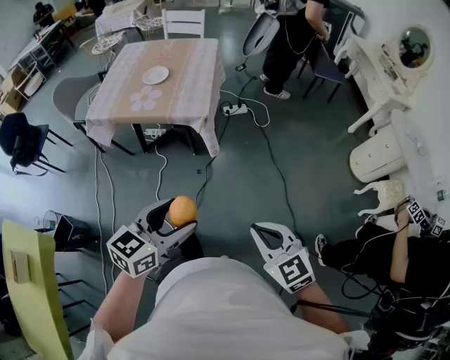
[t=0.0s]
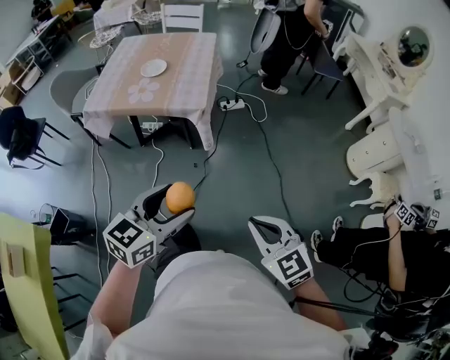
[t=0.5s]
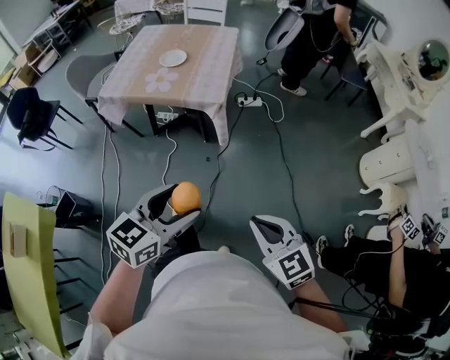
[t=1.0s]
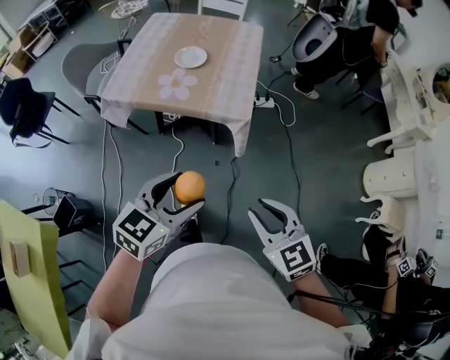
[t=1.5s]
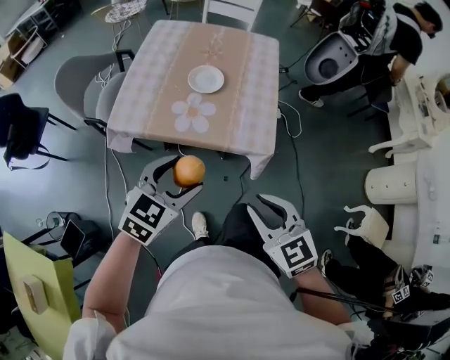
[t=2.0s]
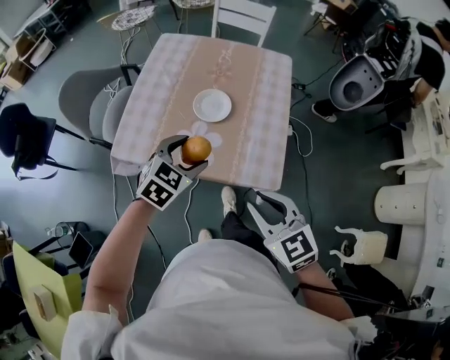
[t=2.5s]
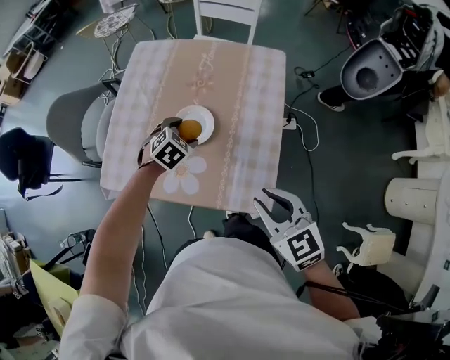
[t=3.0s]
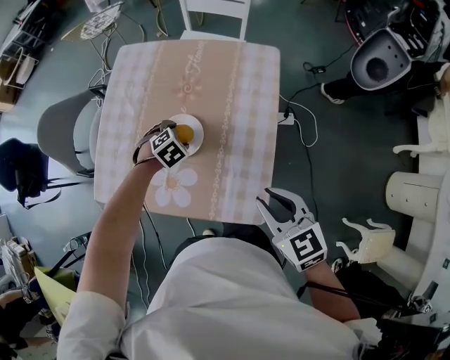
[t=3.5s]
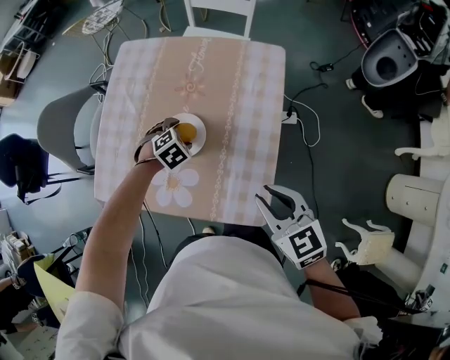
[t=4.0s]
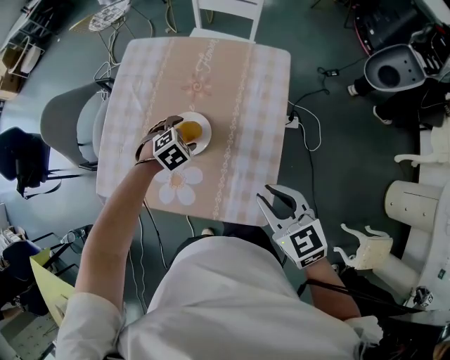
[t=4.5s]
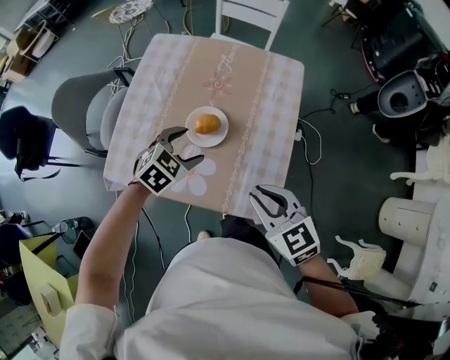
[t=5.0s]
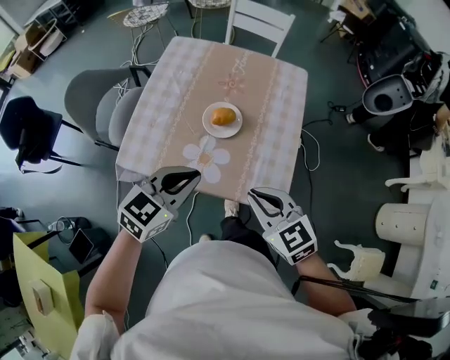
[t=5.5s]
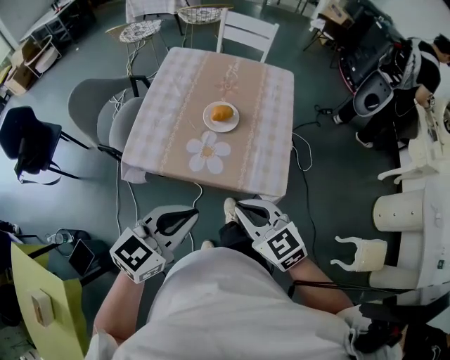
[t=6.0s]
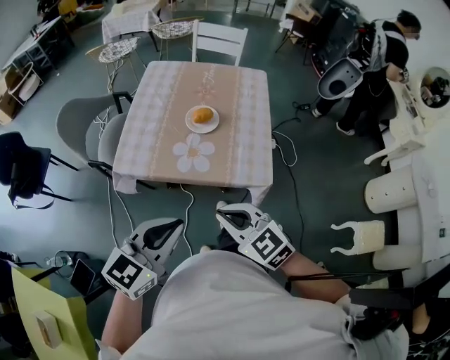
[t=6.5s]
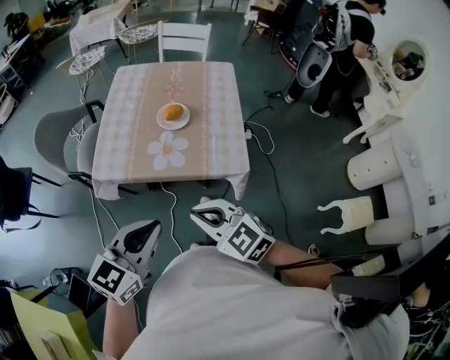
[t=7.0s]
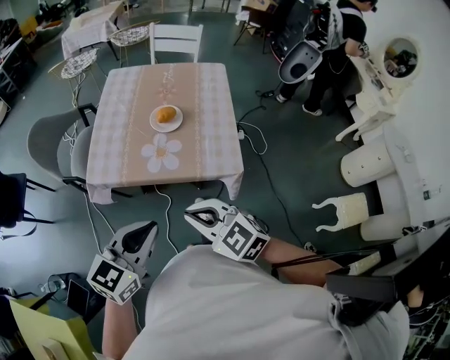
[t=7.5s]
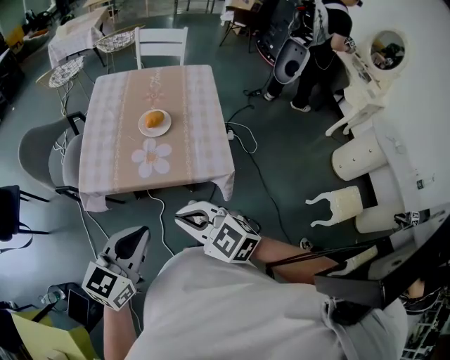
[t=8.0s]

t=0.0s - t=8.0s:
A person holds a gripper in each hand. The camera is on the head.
t=0.0s - t=2.0s: The pair of grippers is taken forward and to the left, some 40 cm. The right gripper opens. Meanwhile the left gripper changes its angle by approximately 20 degrees.
t=2.0s - t=4.0s: The left gripper goes about 50 cm forward and downward, and tips its fingers downward by roughly 40 degrees. The right gripper goes some 35 cm forward.
t=4.0s - t=6.0s: The right gripper travels backward and to the left by some 30 cm, and closes up; the left gripper shifts about 50 cm backward and upward, tilts its fingers some 60 degrees upward, and closes.
t=6.0s - t=8.0s: The right gripper heads backward and to the left, covering about 10 cm. Meanwhile the left gripper travels backward by approximately 5 cm.

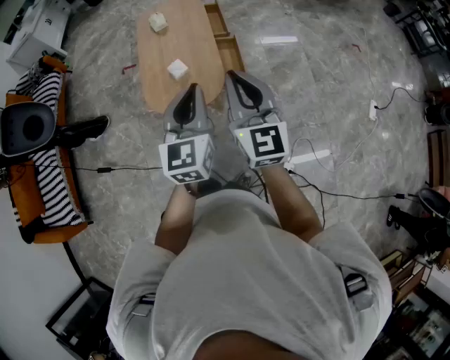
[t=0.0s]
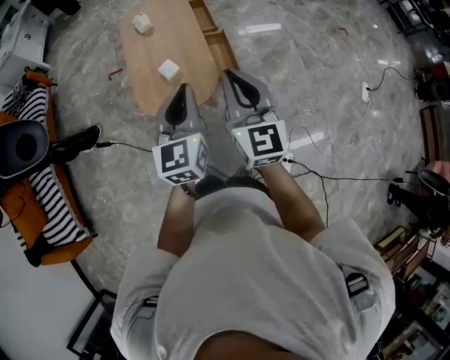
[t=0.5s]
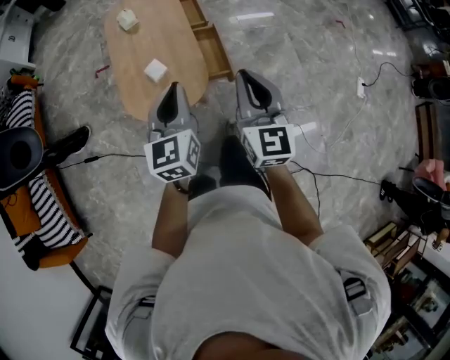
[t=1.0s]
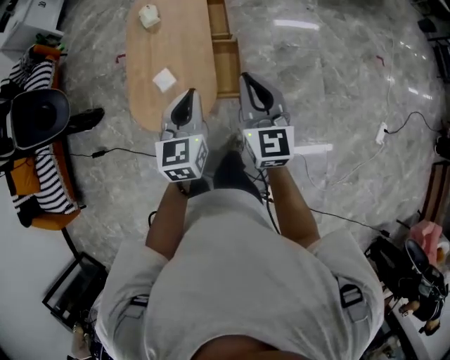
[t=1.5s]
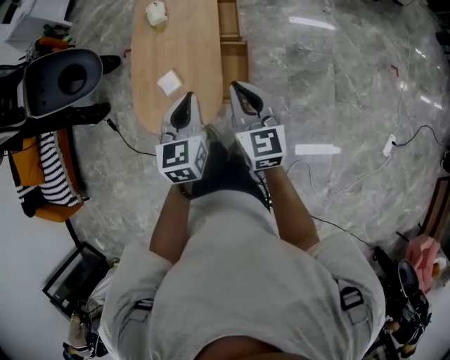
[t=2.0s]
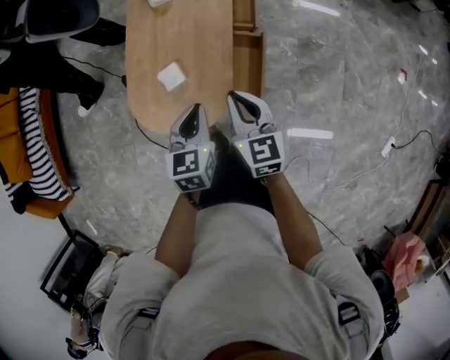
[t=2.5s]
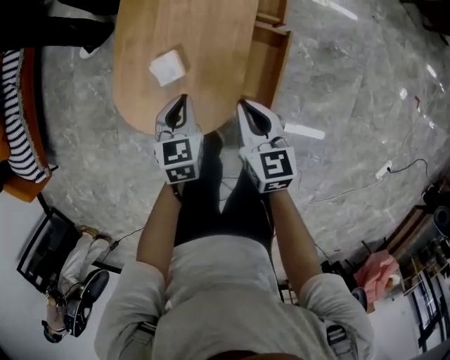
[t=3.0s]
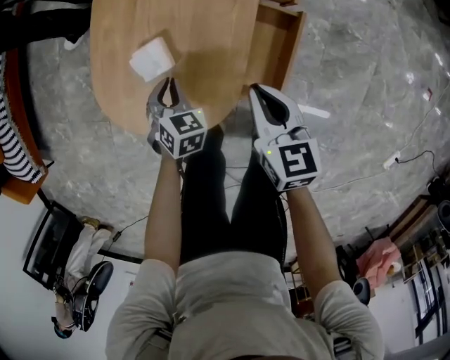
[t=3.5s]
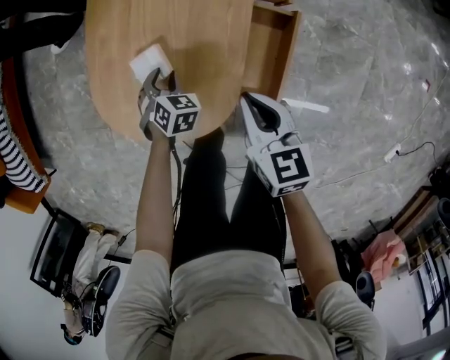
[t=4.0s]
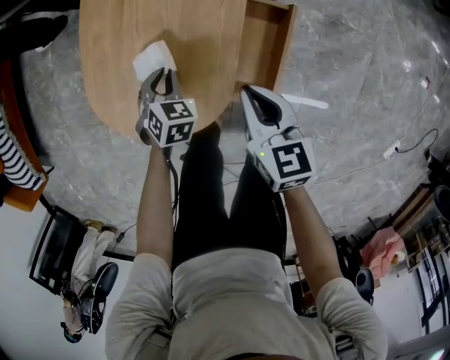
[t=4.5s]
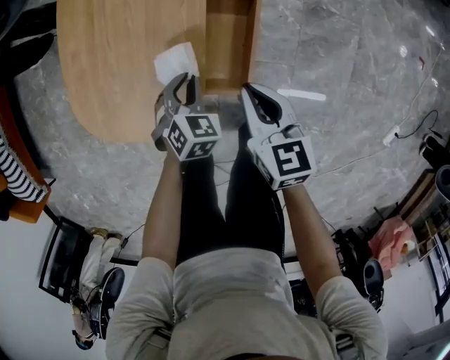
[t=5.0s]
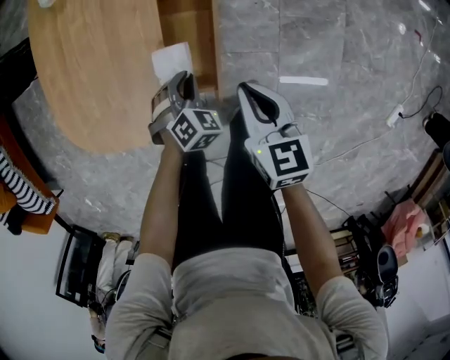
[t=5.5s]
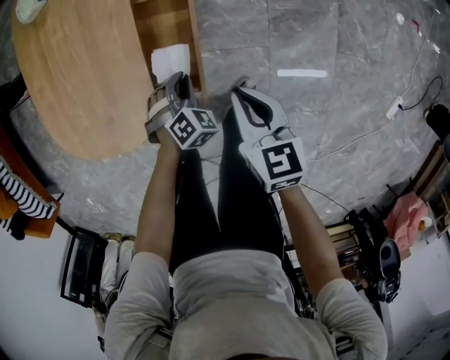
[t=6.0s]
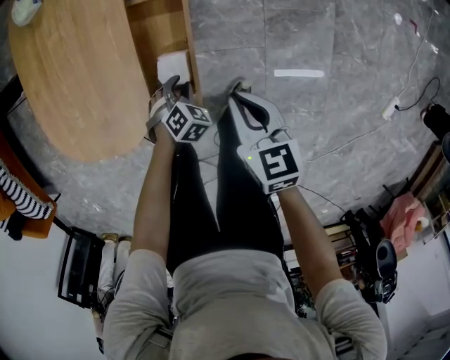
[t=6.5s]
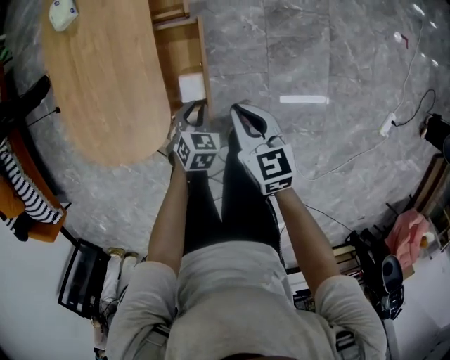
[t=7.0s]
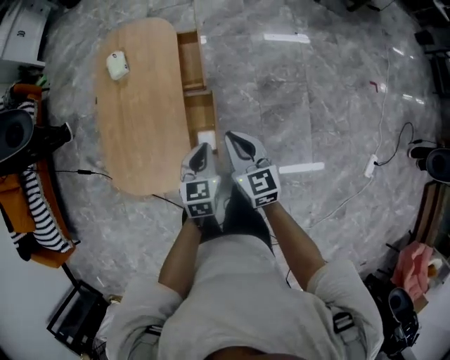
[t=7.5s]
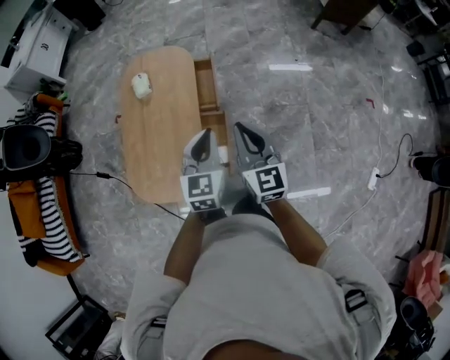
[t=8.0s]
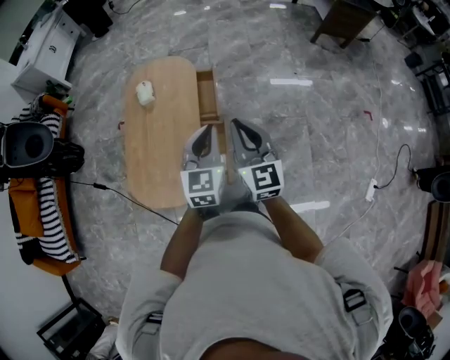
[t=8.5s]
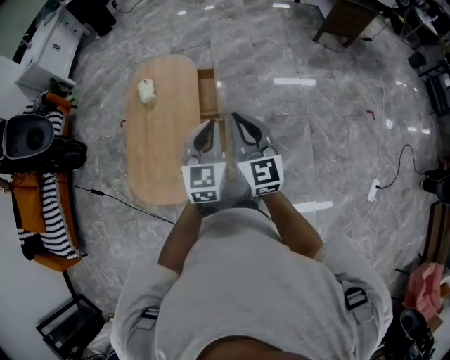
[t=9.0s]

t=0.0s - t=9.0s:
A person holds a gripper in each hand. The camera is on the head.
t=0.0s - t=2.0s: Both grippers travel together forward and downward, roughly 30 cm. The right gripper turns by about 20 degrees; the left gripper turns by about 20 degrees.
t=2.0s - t=4.5s: Both grippers move downward, approximately 40 cm. The right gripper changes its angle by approximately 30 degrees. The left gripper tips its fingers downward by roughly 40 degrees, and opens, then closes again.
t=4.5s - t=7.0s: The right gripper is displaced to the right by some 20 cm. Meanwhile the left gripper heads to the right and backward, covering some 30 cm.
t=7.0s - t=9.0s: The two grippers go roughly 40 cm upward. The left gripper points its fingers some 50 degrees further upward, while the right gripper points its fingers about 30 degrees further upward.

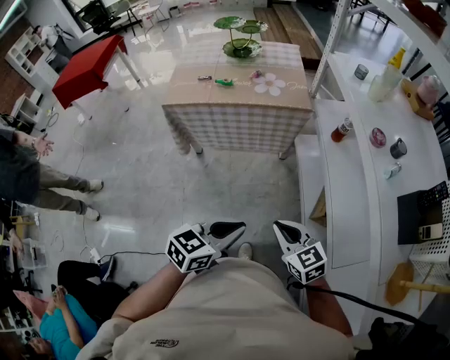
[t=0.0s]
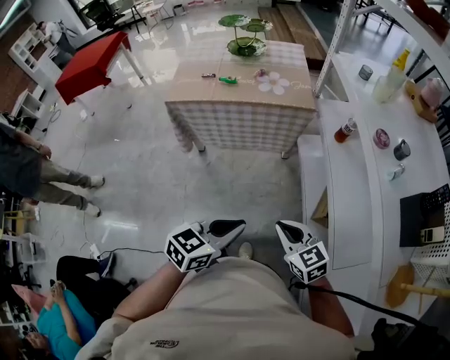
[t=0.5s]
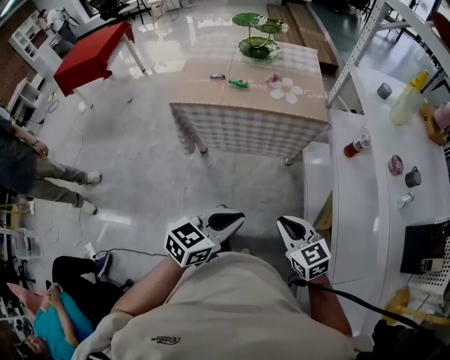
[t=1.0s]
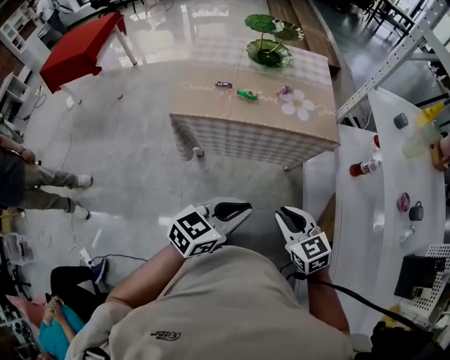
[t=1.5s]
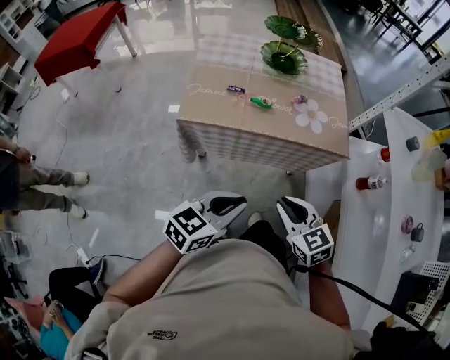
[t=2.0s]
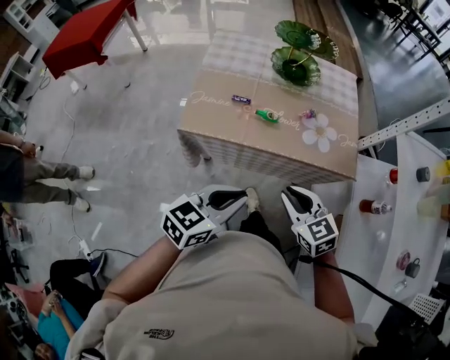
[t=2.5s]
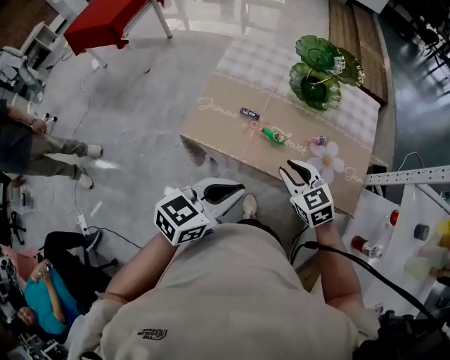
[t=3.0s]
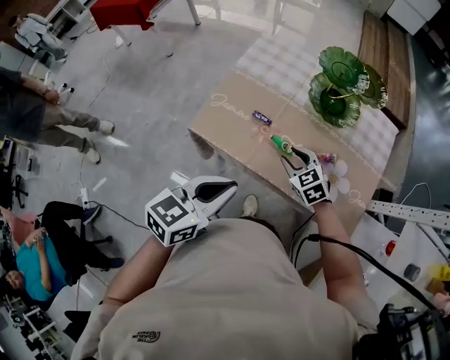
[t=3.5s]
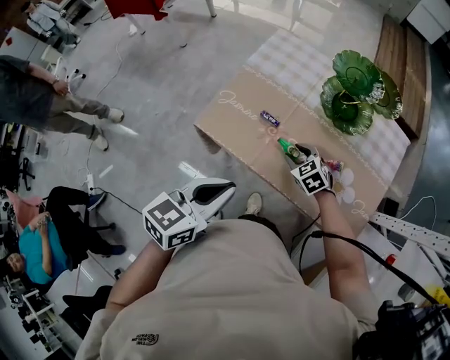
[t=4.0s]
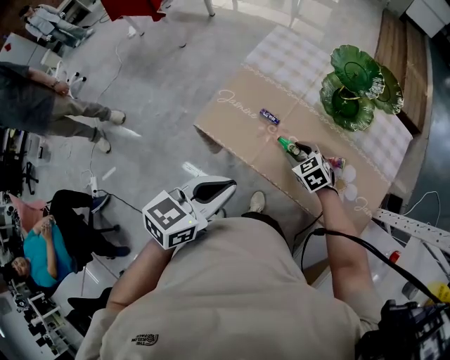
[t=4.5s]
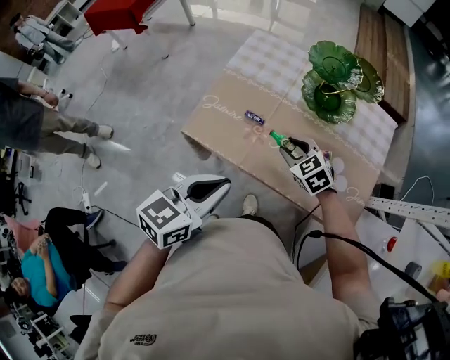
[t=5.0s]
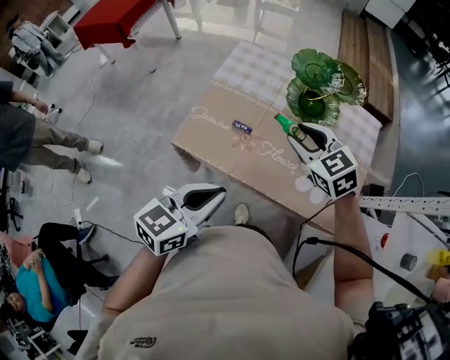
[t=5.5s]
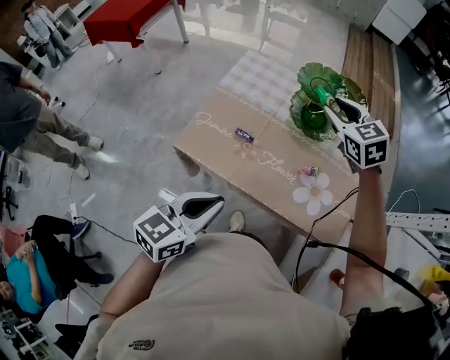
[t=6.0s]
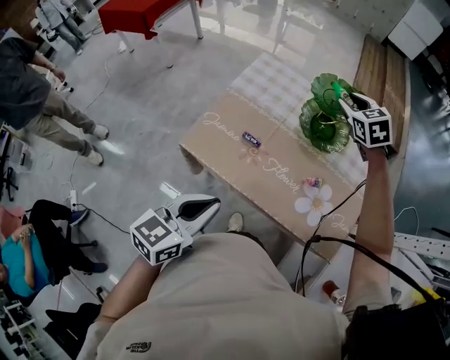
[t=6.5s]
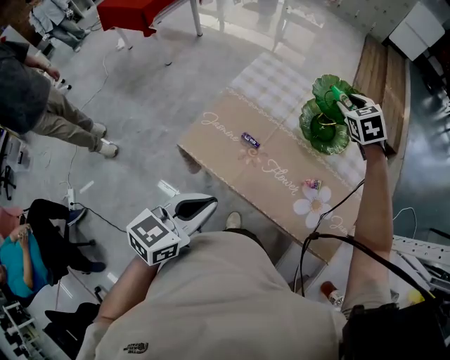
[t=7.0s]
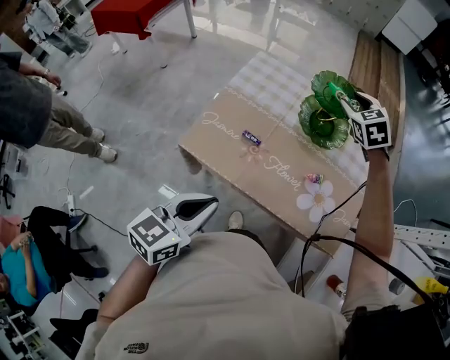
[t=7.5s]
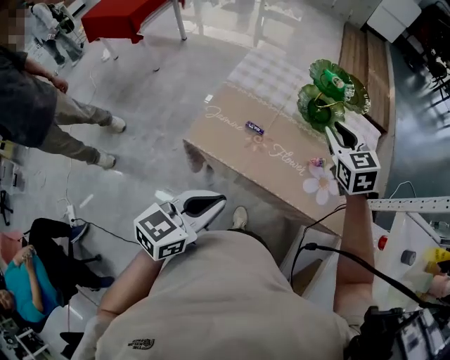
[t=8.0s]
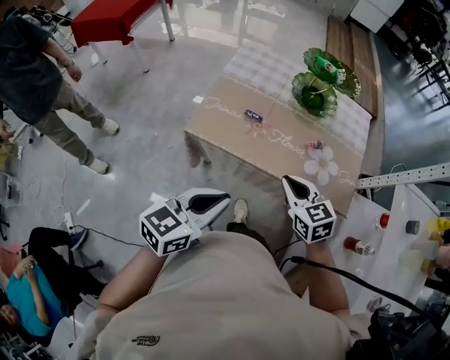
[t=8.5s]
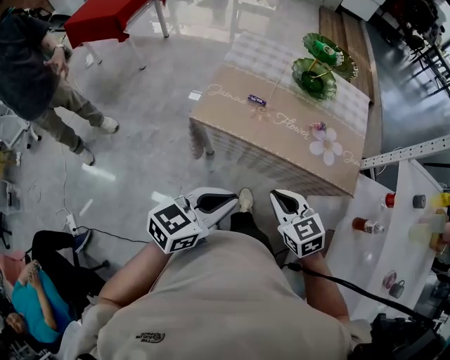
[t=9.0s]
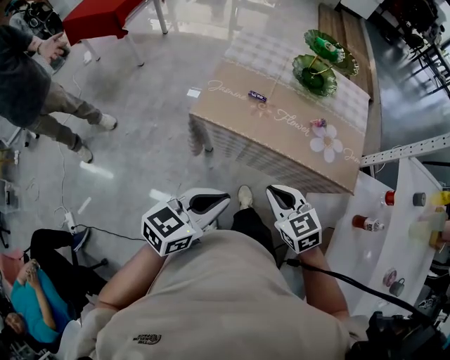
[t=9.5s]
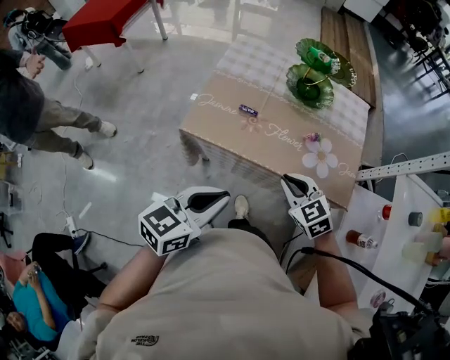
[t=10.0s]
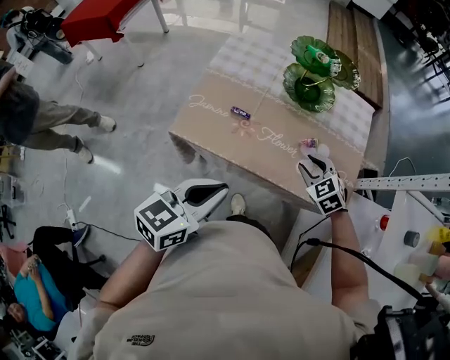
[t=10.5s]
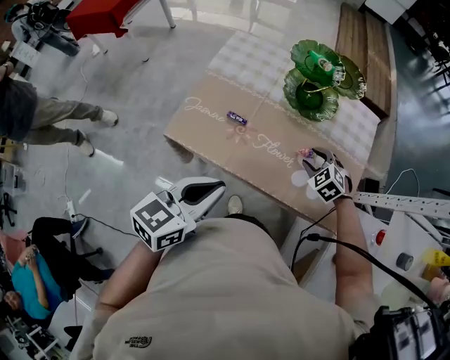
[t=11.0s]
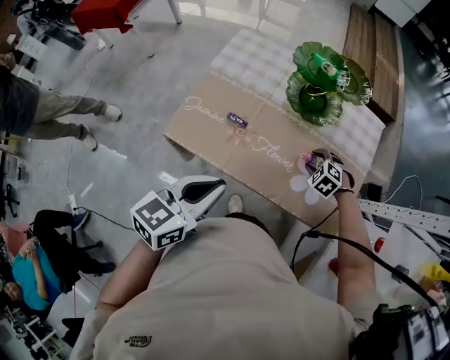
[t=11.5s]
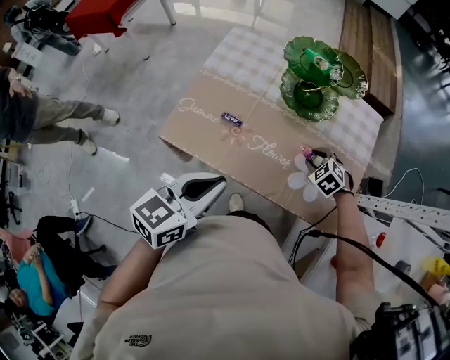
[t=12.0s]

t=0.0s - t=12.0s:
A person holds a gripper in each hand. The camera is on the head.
t=0.0s - t=2.0s: Both grippers travel together forward and to the left, some 35 cm.
t=2.0s - t=4.0s: The right gripper shifts by approximately 40 cm, rotates roughly 40 degrees, and opens, while the left gripper shifts by about 25 cm, and changes its angle by roughly 40 degrees.
t=4.0s - t=6.0s: The right gripper is displaced upward and forward by roughly 30 cm, and turns by roughly 20 degrees.
t=6.0s - t=8.0s: The left gripper shifts by about 5 cm. The right gripper goes some 10 cm backward.
t=8.0s - t=10.0s: The right gripper travels backward and downward by about 25 cm, and closes.
t=10.0s - t=12.0s: The right gripper travels forward, to the right and downward by roughly 30 cm, changes its angle by some 30 degrees, and opens its fingers; the left gripper shifts about 15 cm forward and to the right.
